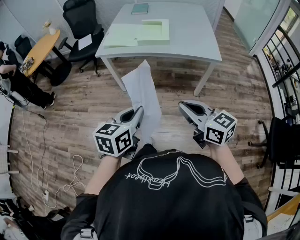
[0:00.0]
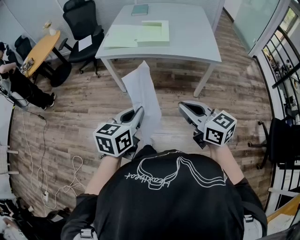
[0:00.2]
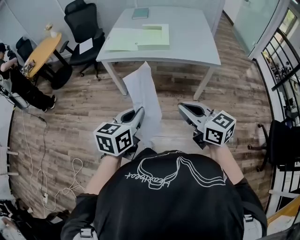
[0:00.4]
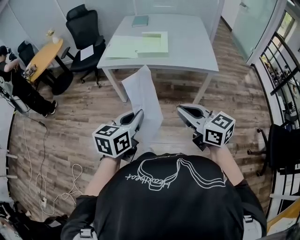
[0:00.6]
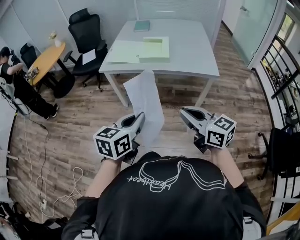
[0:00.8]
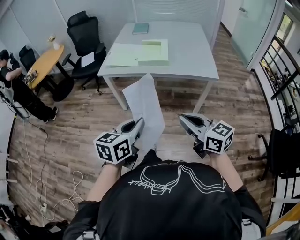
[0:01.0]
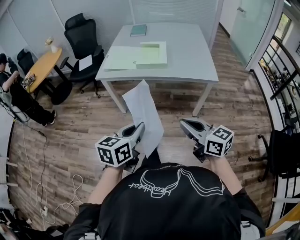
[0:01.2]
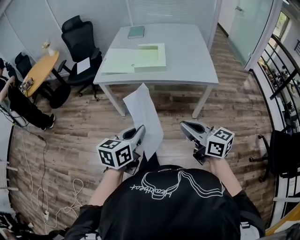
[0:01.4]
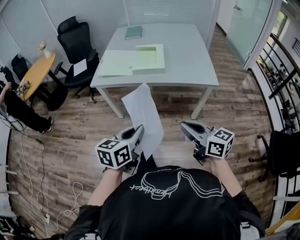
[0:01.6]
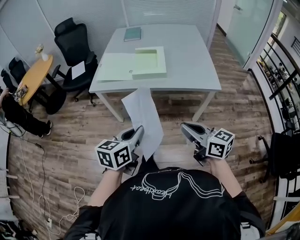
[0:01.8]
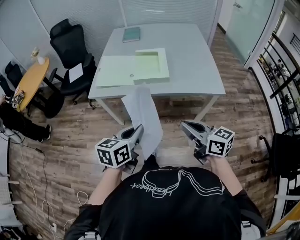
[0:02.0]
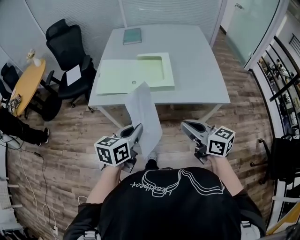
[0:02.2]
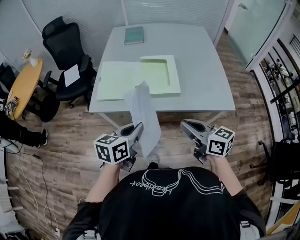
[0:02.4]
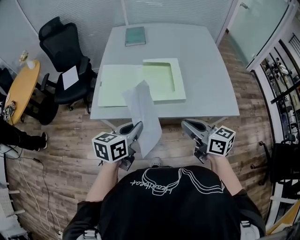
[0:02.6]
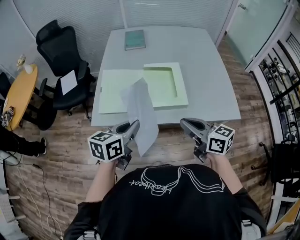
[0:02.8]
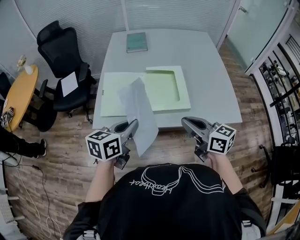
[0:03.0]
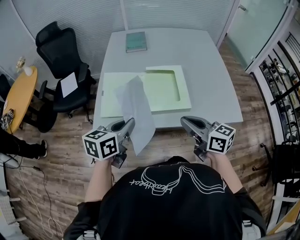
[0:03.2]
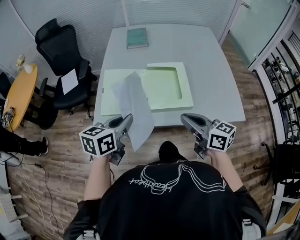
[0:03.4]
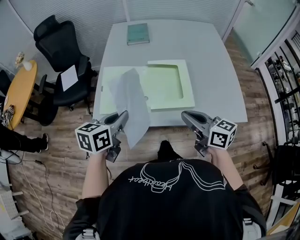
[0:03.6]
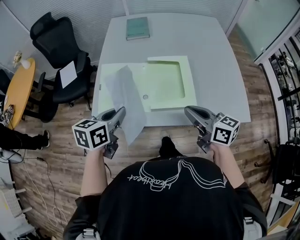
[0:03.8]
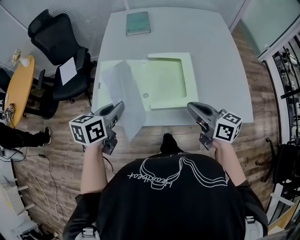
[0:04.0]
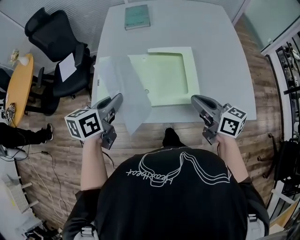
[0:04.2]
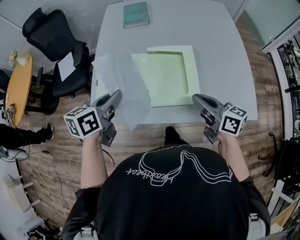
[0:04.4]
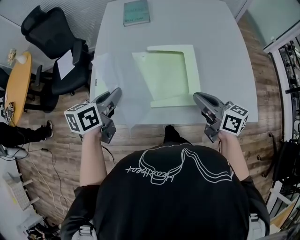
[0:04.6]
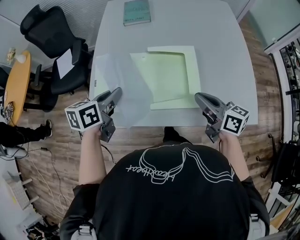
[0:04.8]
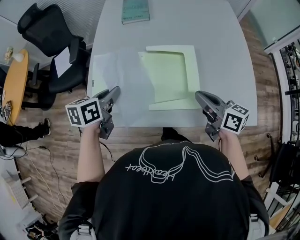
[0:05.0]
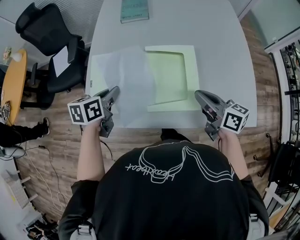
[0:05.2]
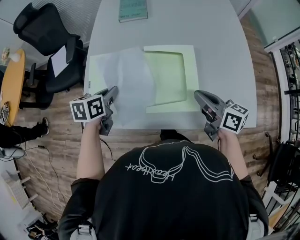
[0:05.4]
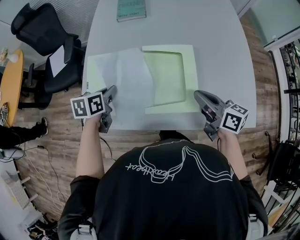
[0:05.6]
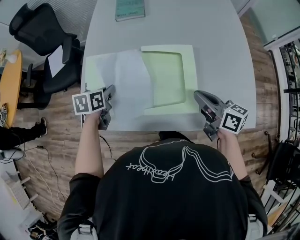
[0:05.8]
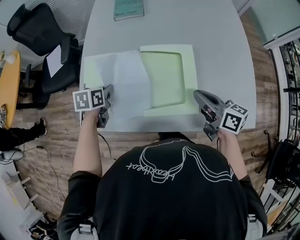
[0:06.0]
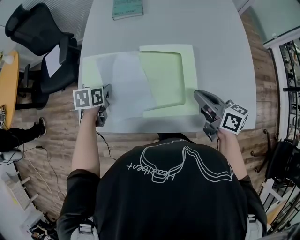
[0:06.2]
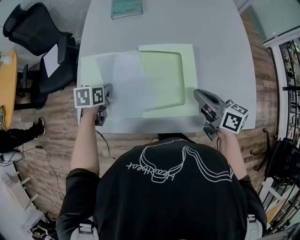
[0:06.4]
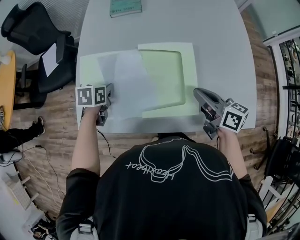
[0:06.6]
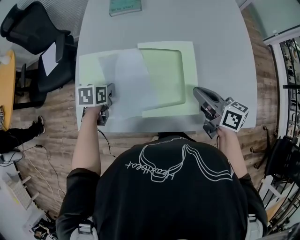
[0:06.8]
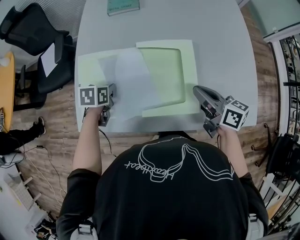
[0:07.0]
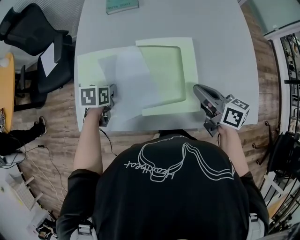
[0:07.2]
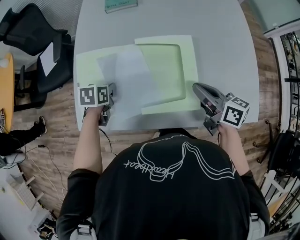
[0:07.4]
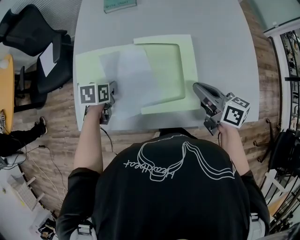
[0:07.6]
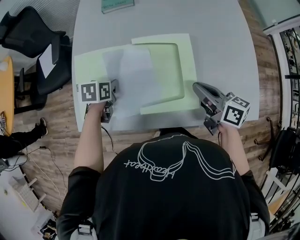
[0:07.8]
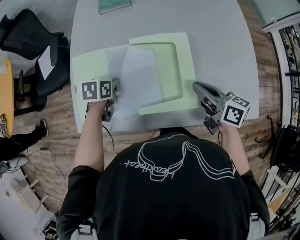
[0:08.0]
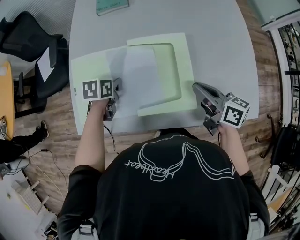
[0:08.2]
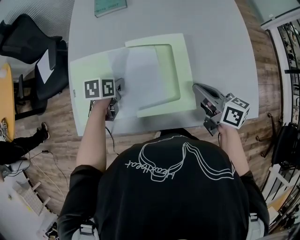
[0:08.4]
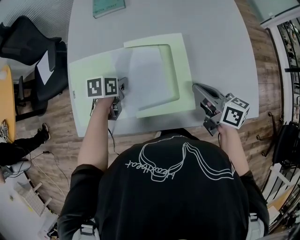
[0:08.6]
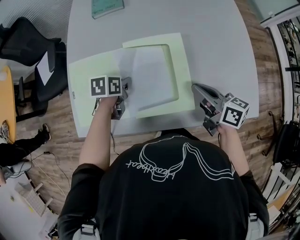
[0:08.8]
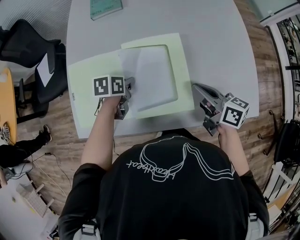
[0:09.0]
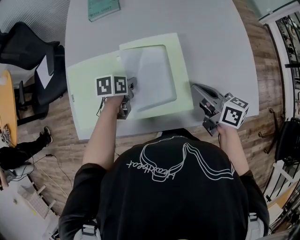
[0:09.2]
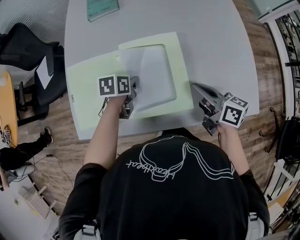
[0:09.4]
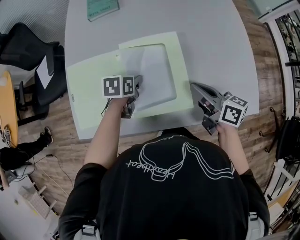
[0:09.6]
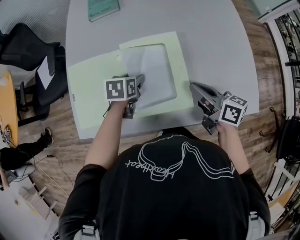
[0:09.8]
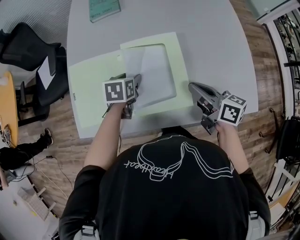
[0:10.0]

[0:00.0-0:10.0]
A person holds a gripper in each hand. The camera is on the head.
0:00.0 to 0:01.4: The right gripper changes place by approximately 5 cm, while the left gripper is displaced forward by some 5 cm.
0:01.4 to 0:02.8: Both grippers are carried forward, about 40 cm.
0:02.8 to 0:04.2: The two grippers go some 15 cm forward.
0:04.2 to 0:05.8: The left gripper goes about 20 cm downward and forward, and turns by approximately 20 degrees; the right gripper heads forward and downward, covering approximately 10 cm.
0:05.8 to 0:07.2: The left gripper moves downward, about 5 cm.
0:07.2 to 0:08.6: The left gripper goes approximately 10 cm to the right.
0:08.6 to 0:10.0: The left gripper opens its fingers.

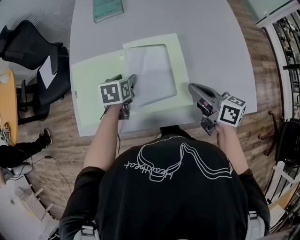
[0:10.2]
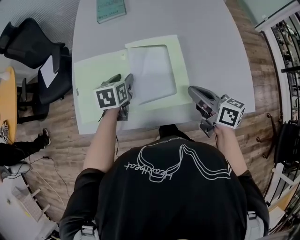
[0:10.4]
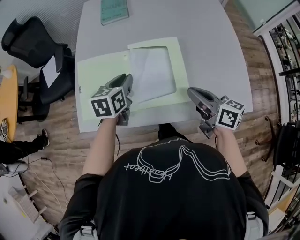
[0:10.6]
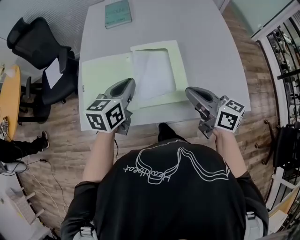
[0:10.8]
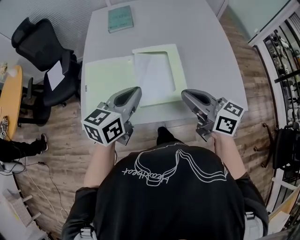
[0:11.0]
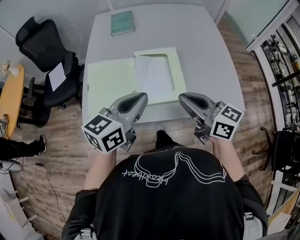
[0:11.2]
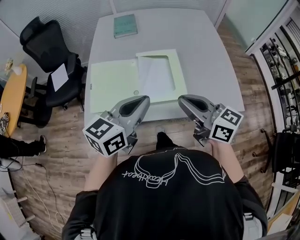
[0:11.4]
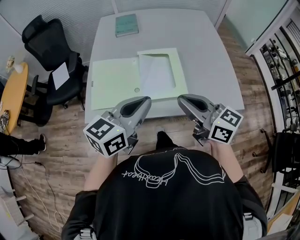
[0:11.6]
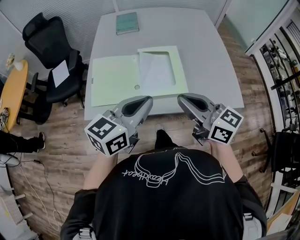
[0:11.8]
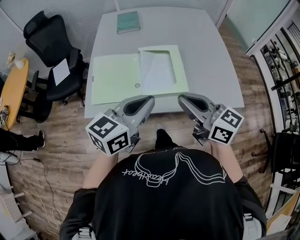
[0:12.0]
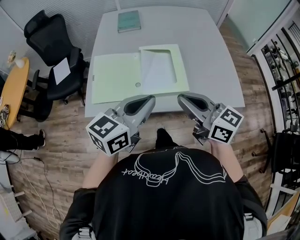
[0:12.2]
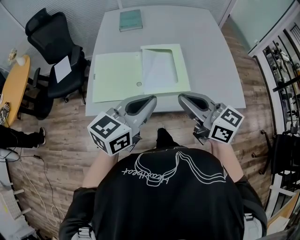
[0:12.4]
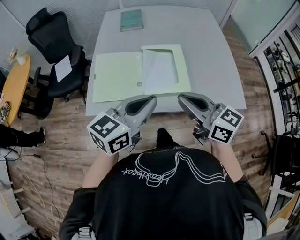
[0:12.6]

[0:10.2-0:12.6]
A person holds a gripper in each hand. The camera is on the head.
0:10.2 to 0:11.4: The right gripper goes about 25 cm upward, backward and to the left, and turns by roughly 30 degrees. The left gripper shifts approximately 35 cm upward and backward, points its fingers roughly 40 degrees further upward, and closes its fingers.
0:11.4 to 0:12.6: The grippers stay close to where they were, moving slightly.

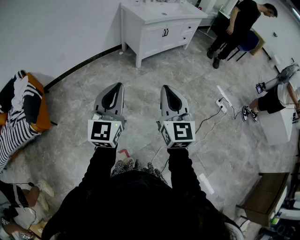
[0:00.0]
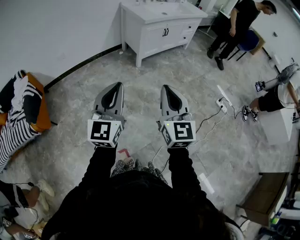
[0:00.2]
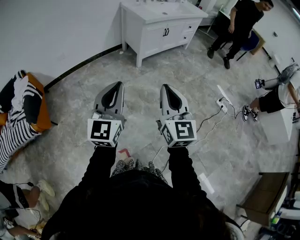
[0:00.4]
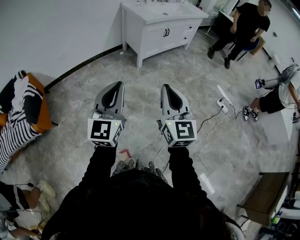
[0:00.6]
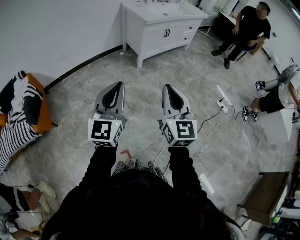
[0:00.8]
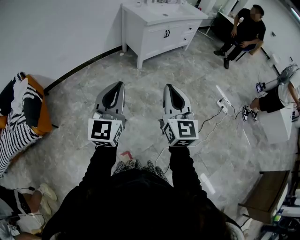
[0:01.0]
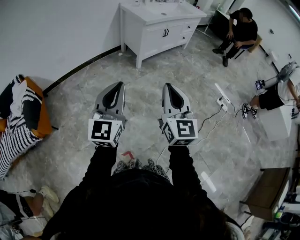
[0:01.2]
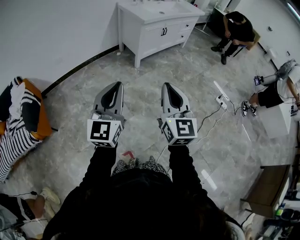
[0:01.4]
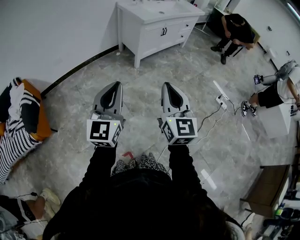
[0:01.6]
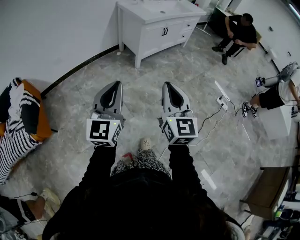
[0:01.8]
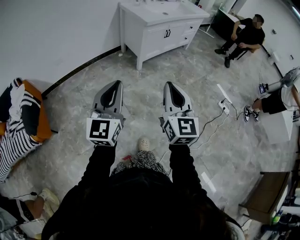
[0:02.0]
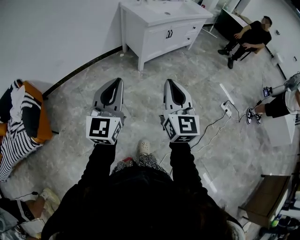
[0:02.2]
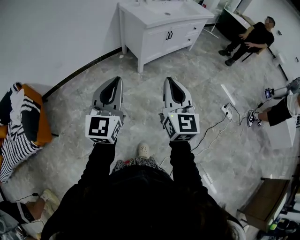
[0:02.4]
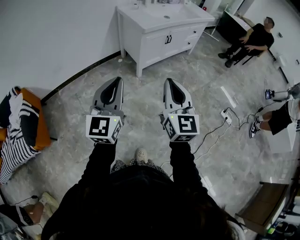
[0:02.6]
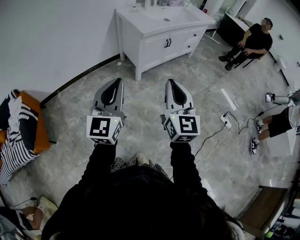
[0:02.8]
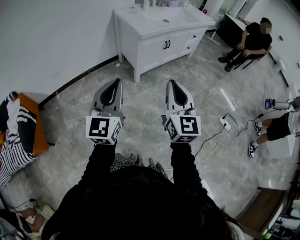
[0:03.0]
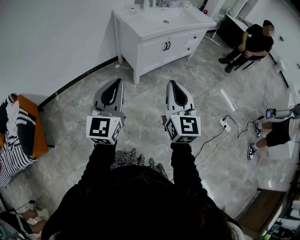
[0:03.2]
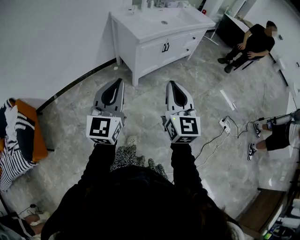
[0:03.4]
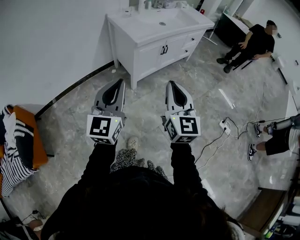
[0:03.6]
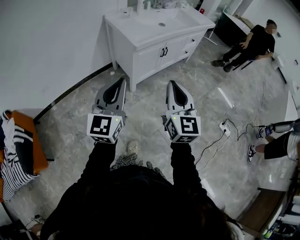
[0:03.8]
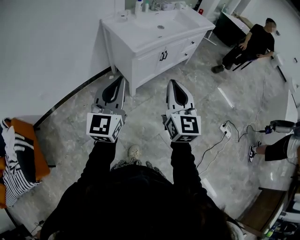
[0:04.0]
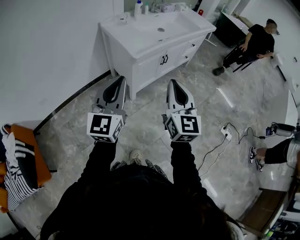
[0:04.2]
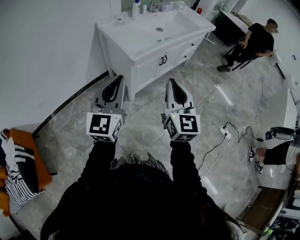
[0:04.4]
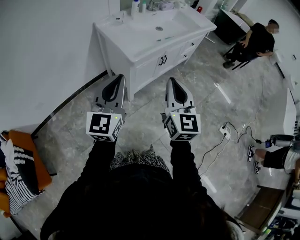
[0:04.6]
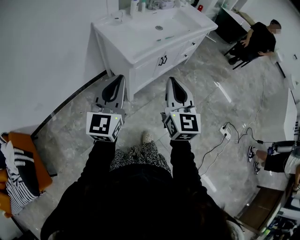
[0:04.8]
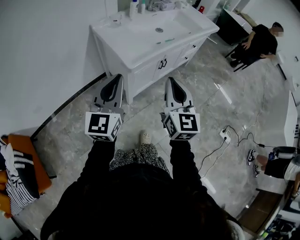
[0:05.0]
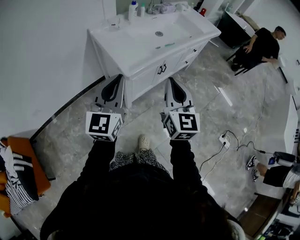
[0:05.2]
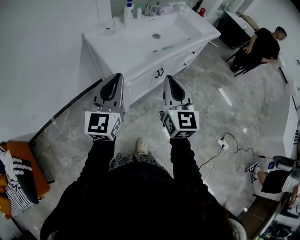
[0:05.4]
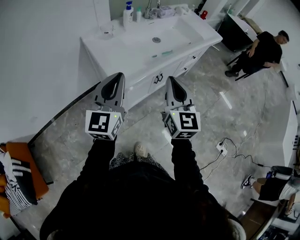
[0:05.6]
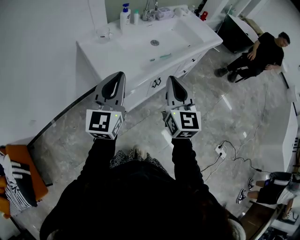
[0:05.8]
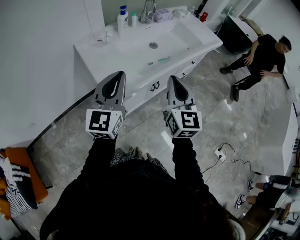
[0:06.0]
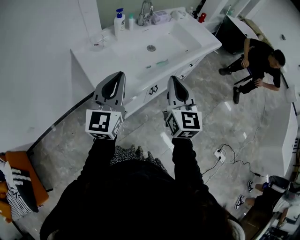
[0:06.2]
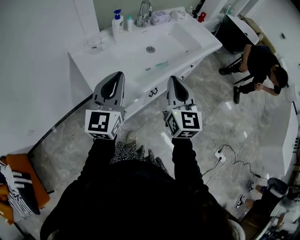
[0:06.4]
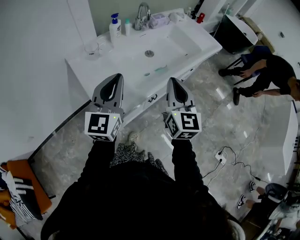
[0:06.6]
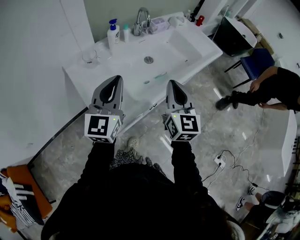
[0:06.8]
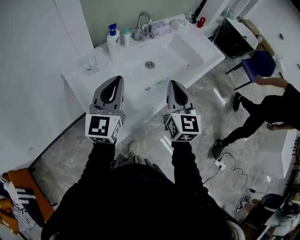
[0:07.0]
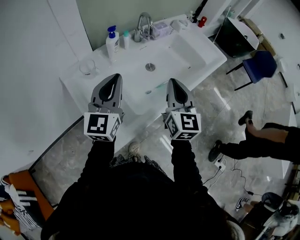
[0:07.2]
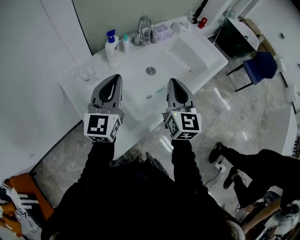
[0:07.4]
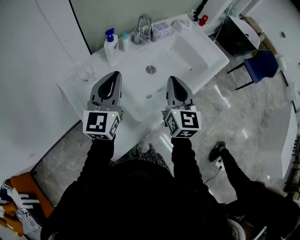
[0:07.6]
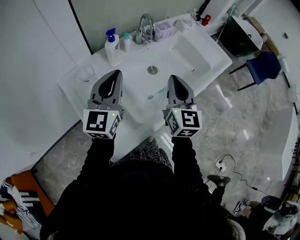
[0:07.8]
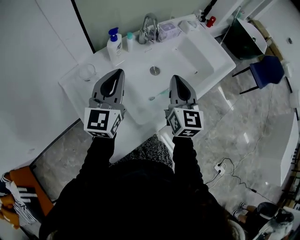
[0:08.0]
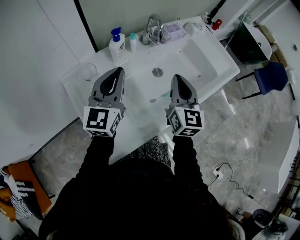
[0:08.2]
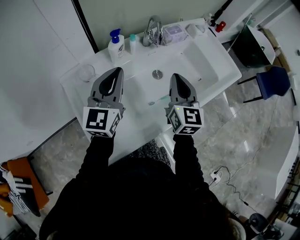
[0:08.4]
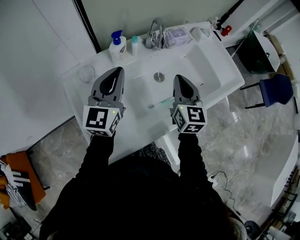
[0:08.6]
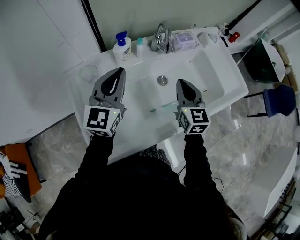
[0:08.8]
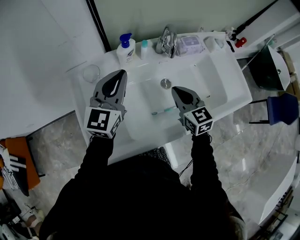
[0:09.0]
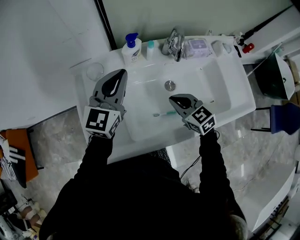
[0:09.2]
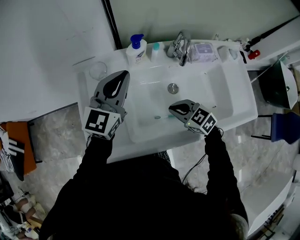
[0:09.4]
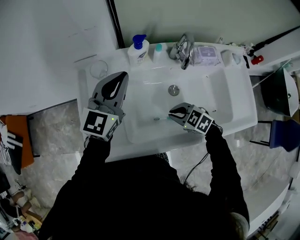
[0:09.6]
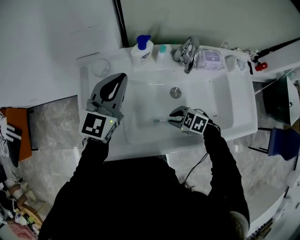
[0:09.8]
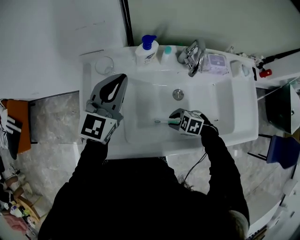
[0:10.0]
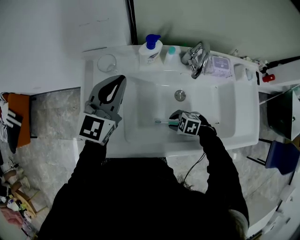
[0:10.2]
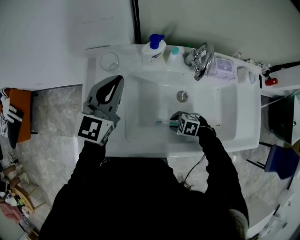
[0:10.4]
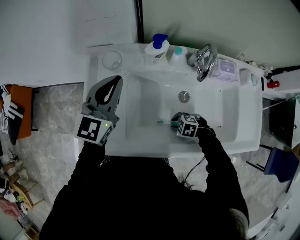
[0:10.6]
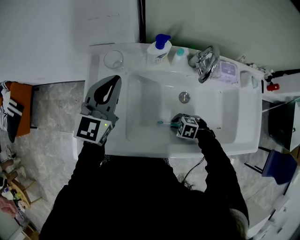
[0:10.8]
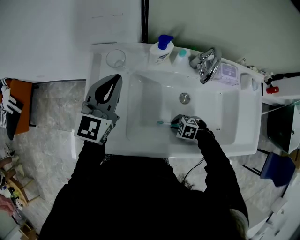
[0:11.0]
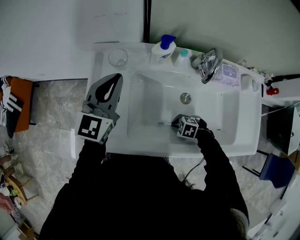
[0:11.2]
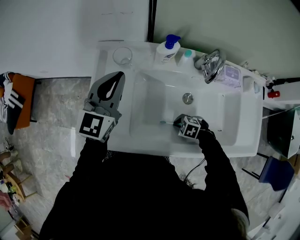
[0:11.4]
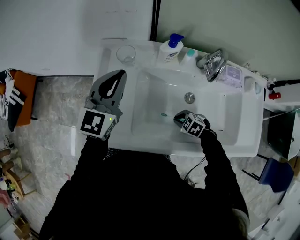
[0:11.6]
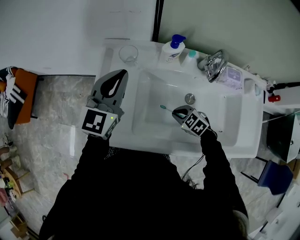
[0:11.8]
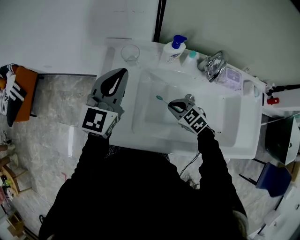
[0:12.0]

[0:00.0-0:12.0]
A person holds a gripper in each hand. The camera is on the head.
0:00.0 to 0:01.6: The right gripper changes place by roughly 5 cm, while the left gripper shifts some 5 cm to the left.
0:01.6 to 0:03.0: Both grippers travel together forward, roughly 25 cm.
0:03.0 to 0:04.4: Both grippers move forward, approximately 30 cm.
0:04.4 to 0:06.0: The grippers both shift forward by roughly 30 cm.
0:06.0 to 0:07.6: The two grippers go about 25 cm forward.
0:07.6 to 0:09.0: The left gripper moves approximately 10 cm. Meanwhile the right gripper ends up roughly 15 cm from where it was, and swivels some 40 degrees.
0:09.0 to 0:10.4: The right gripper is displaced downward by roughly 25 cm, points its fingers approximately 40 degrees further downward, and opens; the left gripper shifts by approximately 5 cm.
0:10.4 to 0:12.0: The left gripper changes place by about 5 cm; the right gripper ends up approximately 15 cm from where it was, and swivels some 30 degrees.
